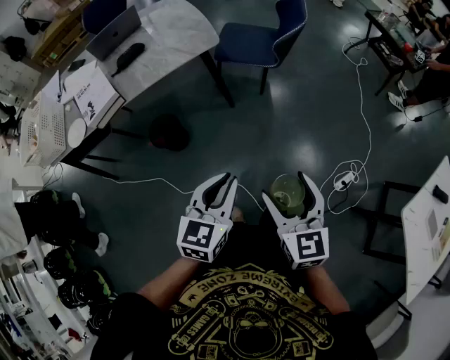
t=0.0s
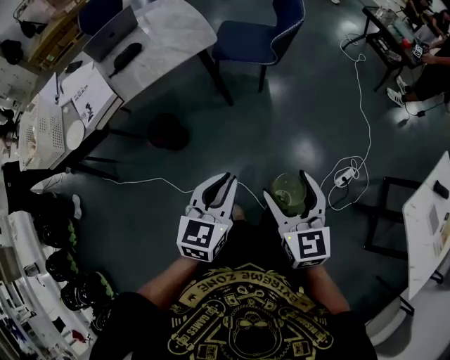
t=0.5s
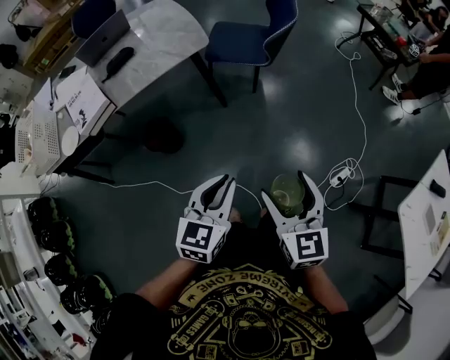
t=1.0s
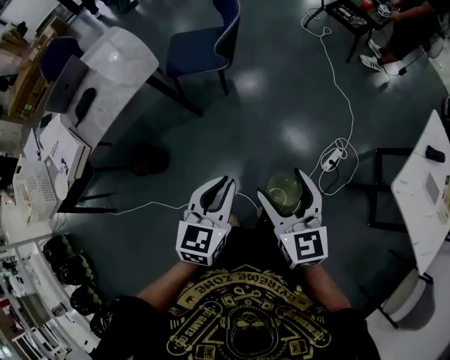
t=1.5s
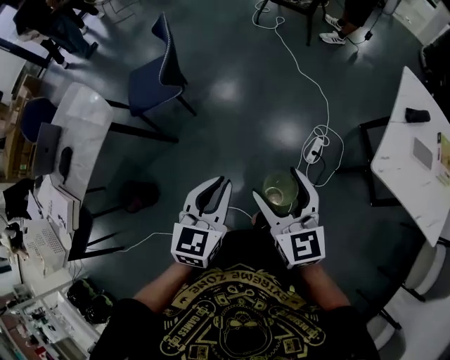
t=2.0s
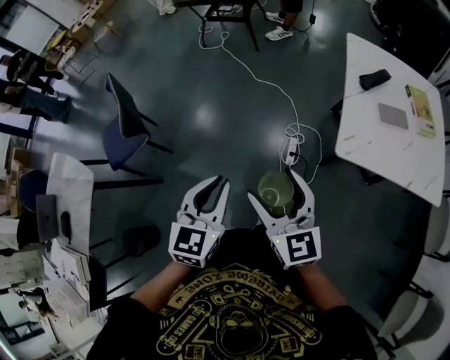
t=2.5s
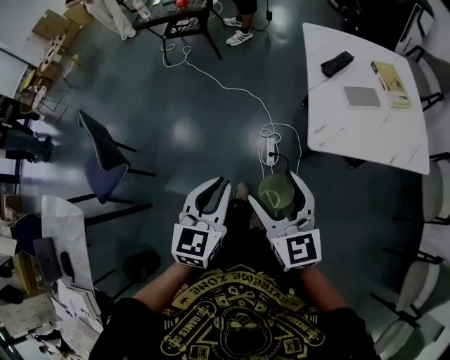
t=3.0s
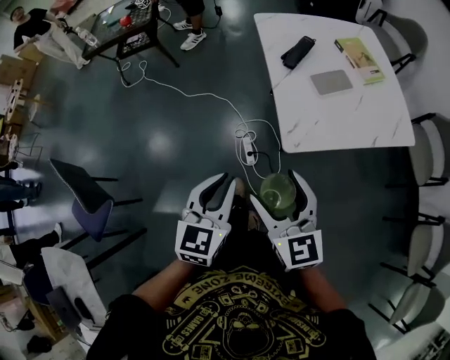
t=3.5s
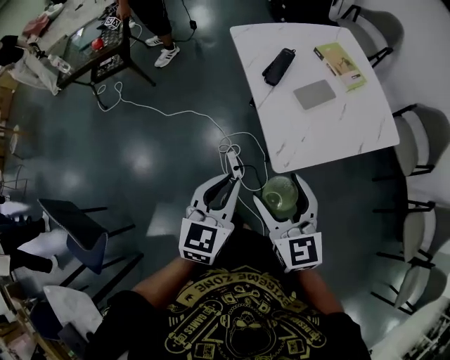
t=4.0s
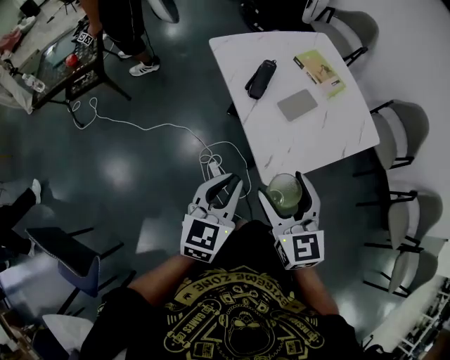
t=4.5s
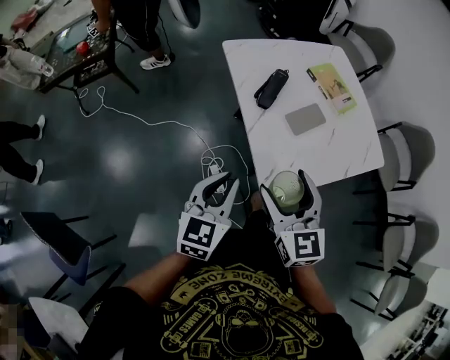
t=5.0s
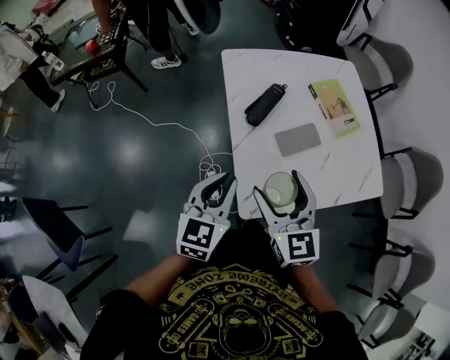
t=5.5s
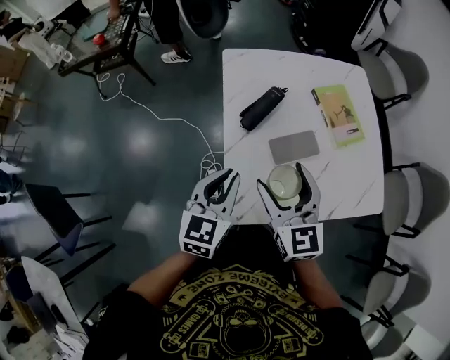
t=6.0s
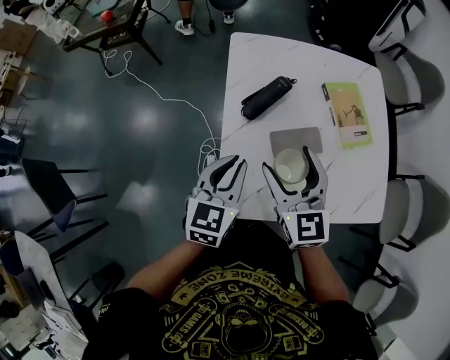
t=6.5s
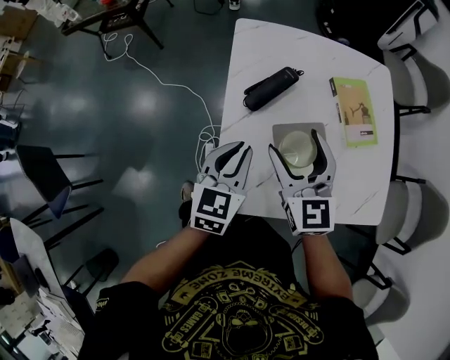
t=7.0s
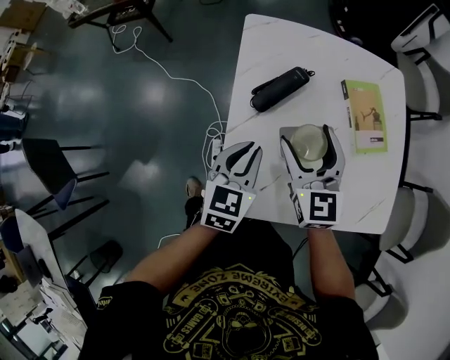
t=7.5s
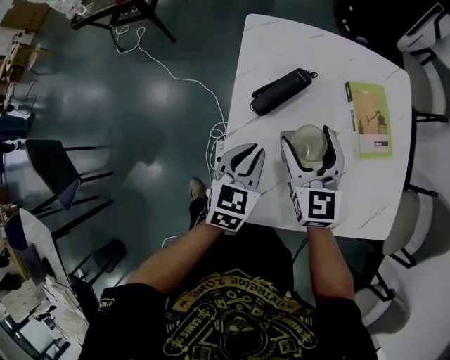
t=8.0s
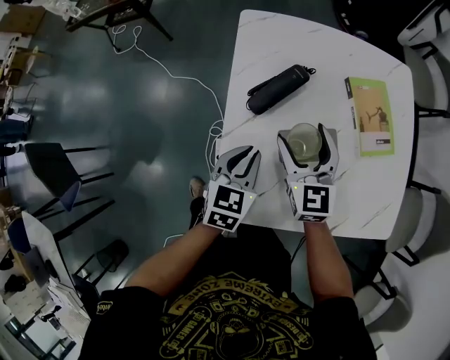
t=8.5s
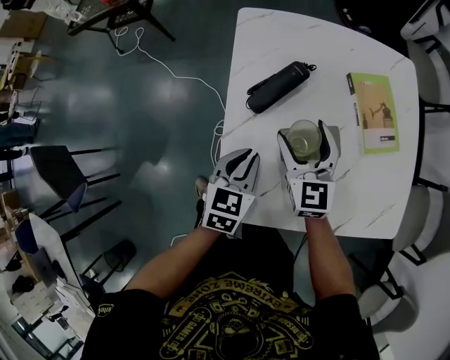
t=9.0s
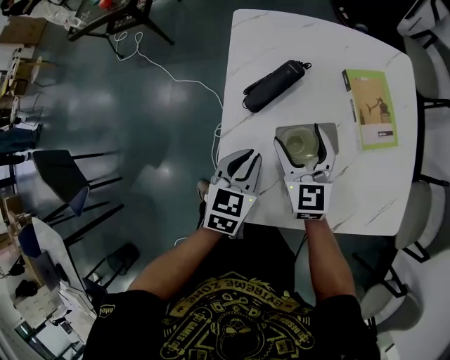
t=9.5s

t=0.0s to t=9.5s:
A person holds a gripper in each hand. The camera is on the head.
t=0.0s to t=2.0s: The right gripper ends up roughly 30 cm from where it was, and changes its angle by some 30 degrees. Meanwhile the left gripper ends up about 30 cm from where it was, and rotates about 30 degrees.
t=2.0s to t=4.0s: The left gripper ends up roughly 40 cm from where it was, and changes its angle by some 50 degrees; the right gripper changes place by approximately 35 cm, and swivels some 50 degrees.
t=4.0s to t=5.5s: The left gripper shifts approximately 20 cm forward and to the right; the right gripper travels forward by about 20 cm.
t=5.5s to t=7.5s: The right gripper heads forward, to the right and downward, covering about 20 cm, while the left gripper is displaced to the right, downward and forward by some 15 cm.
t=7.5s to t=9.5s: The right gripper travels downward by approximately 10 cm, while the left gripper travels downward by some 5 cm.

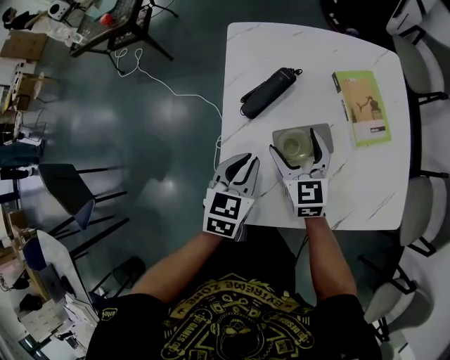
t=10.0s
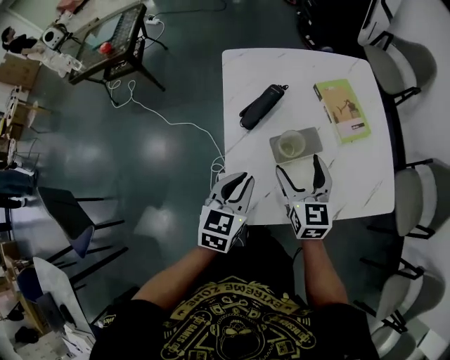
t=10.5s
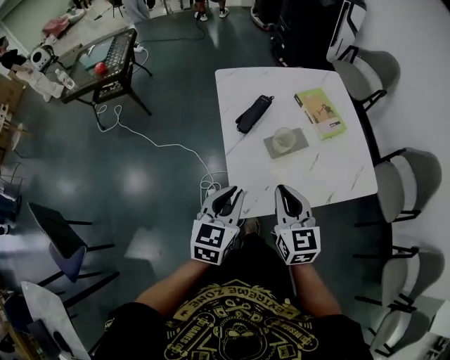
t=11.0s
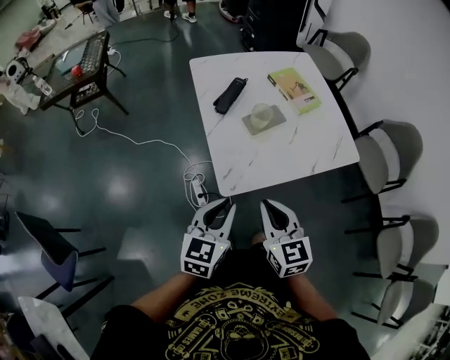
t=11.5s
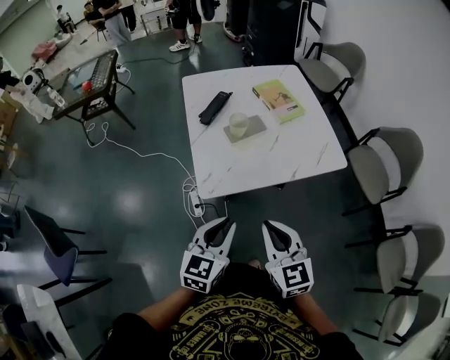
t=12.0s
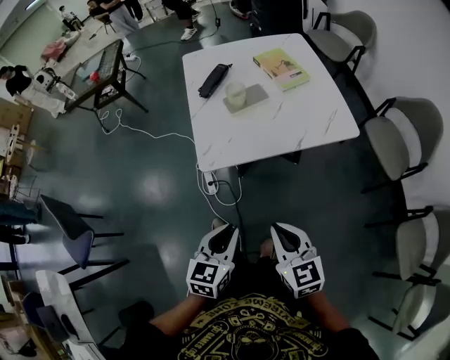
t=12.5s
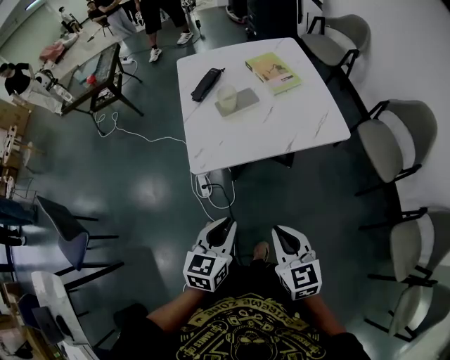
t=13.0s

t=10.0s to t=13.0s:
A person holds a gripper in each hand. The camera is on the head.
t=10.0s to t=11.5s: The two grippers go some 30 cm backward. The left gripper swivels about 20 degrees, while the right gripper closes.
t=11.5s to t=13.0s: The grippers both shift to the right and backward by about 25 cm.

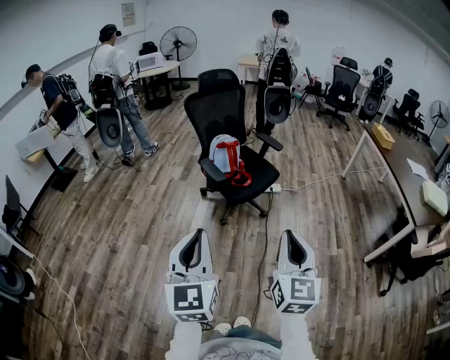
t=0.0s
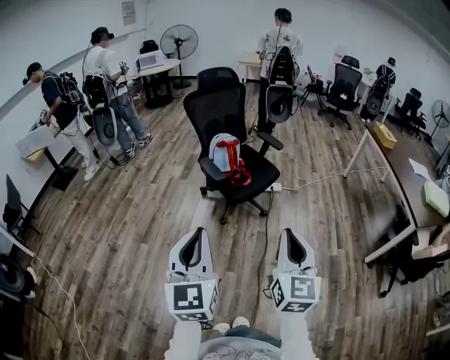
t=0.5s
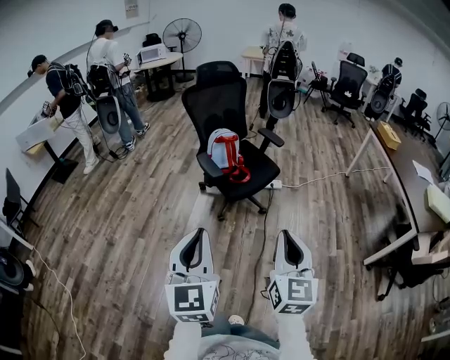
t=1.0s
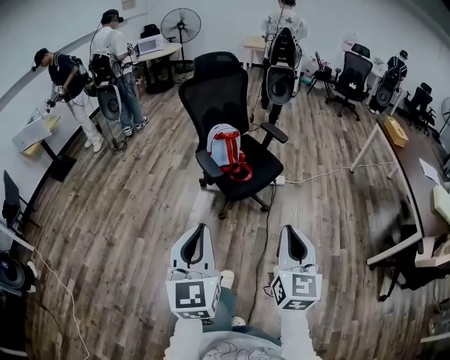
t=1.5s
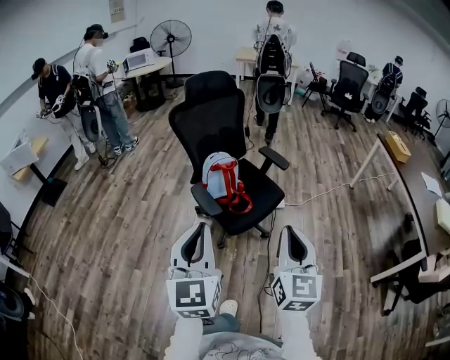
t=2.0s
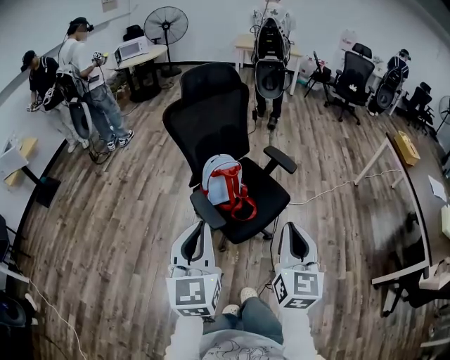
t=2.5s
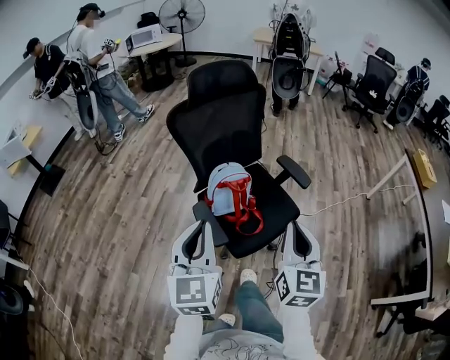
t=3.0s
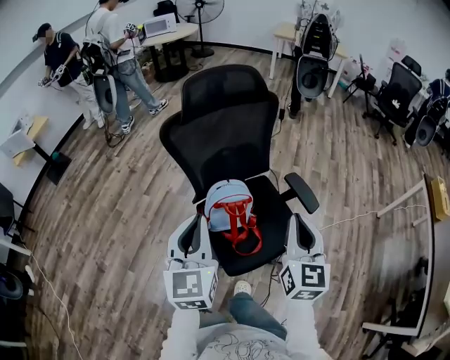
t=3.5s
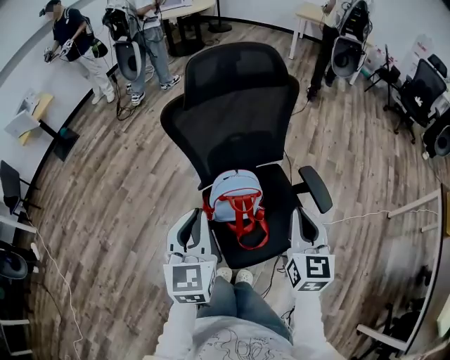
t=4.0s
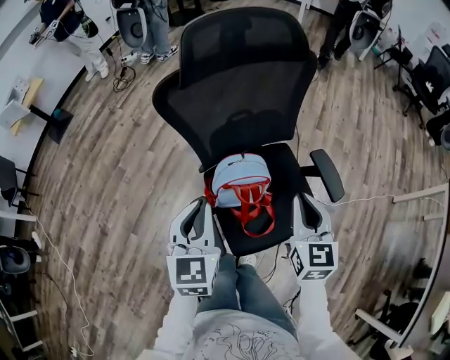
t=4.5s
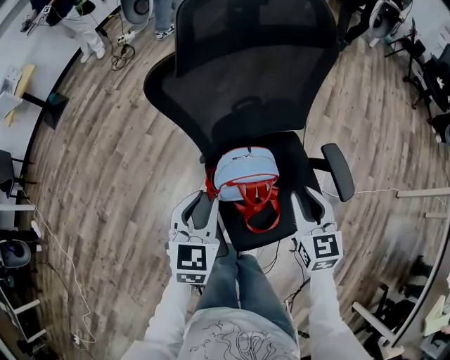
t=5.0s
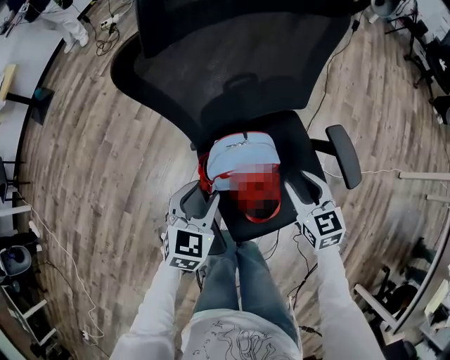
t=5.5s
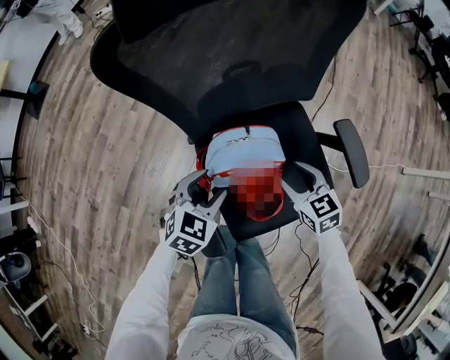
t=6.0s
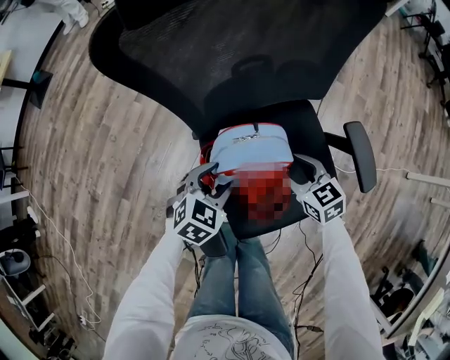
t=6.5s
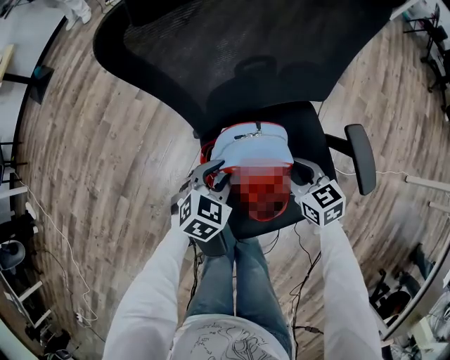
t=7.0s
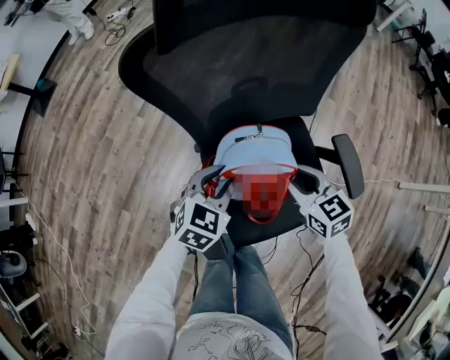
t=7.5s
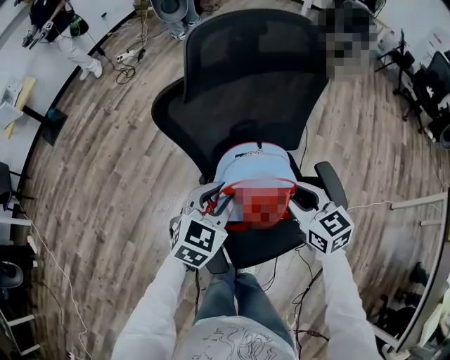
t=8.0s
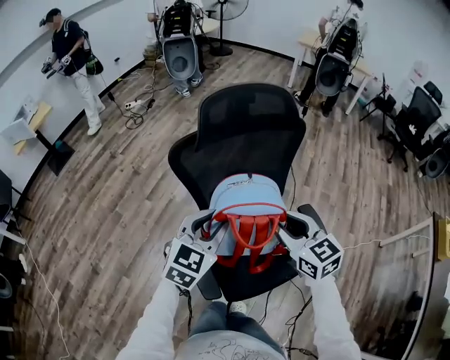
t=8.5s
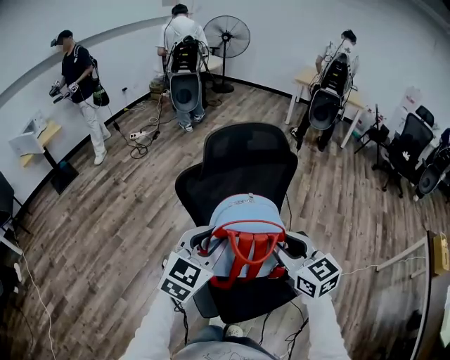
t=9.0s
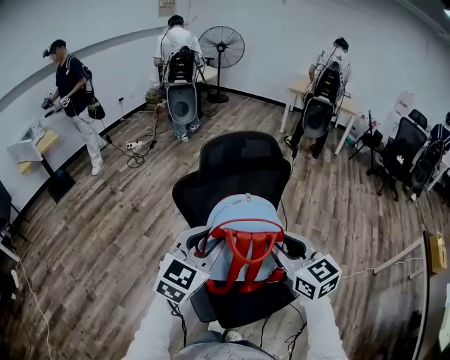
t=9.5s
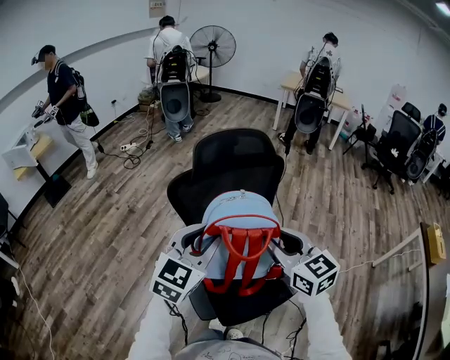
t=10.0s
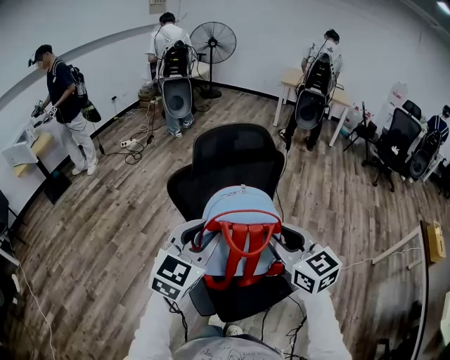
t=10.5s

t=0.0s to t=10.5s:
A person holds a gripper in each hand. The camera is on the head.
t=0.0s to t=2.0s: Both grippers travel together forward, roughly 30 cm.
t=2.0s to t=4.0s: The two grippers travel together, forward, about 50 cm. The right gripper swivels some 20 degrees, while the left gripper swivels approximately 20 degrees.
t=4.0s to t=6.5s: Both grippers move downward, some 35 cm. The right gripper rotates approximately 50 degrees, and opens up; the left gripper points its fingers roughly 40 degrees further downward, and opens up.
t=6.5s to t=8.5s: Both grippers travel together upward, roughly 35 cm. The right gripper changes its angle by approximately 20 degrees. Meanwhile the left gripper turns by some 30 degrees, and closes its fingers.
t=8.5s to t=10.5s: Both grippers travel together upward, some 10 cm.

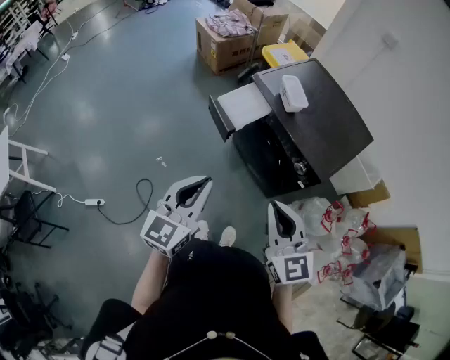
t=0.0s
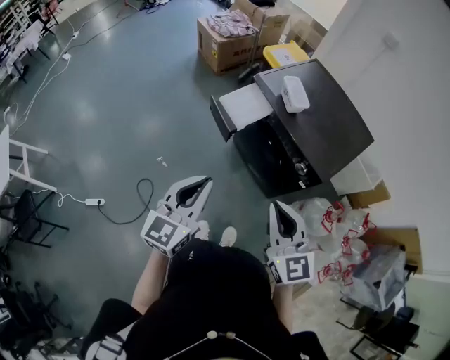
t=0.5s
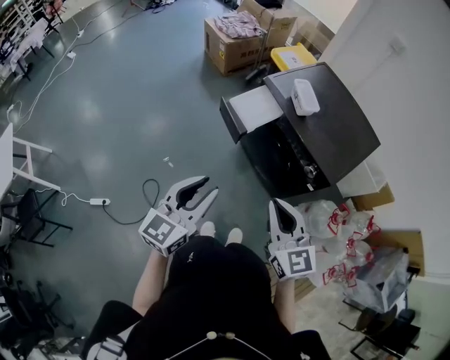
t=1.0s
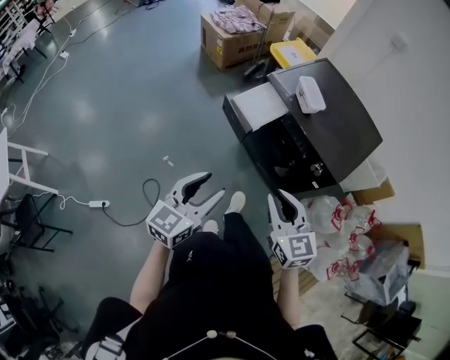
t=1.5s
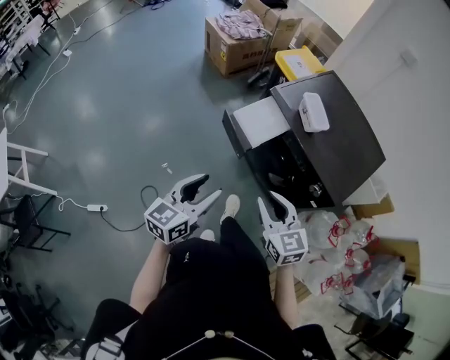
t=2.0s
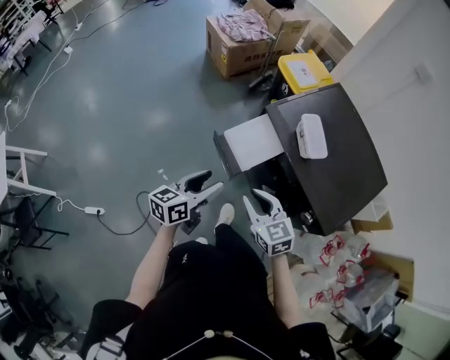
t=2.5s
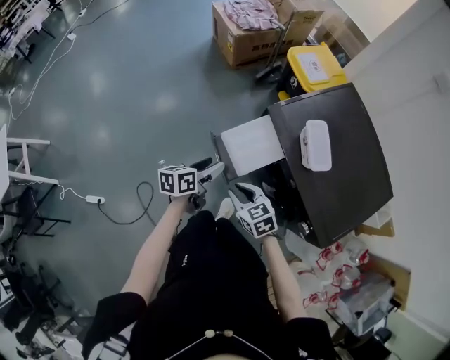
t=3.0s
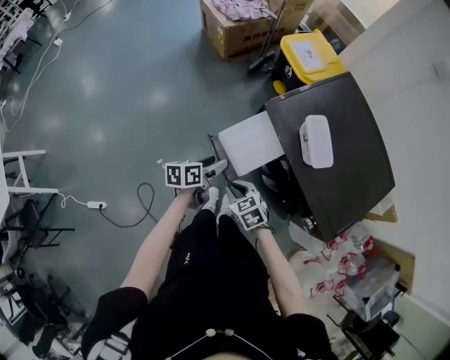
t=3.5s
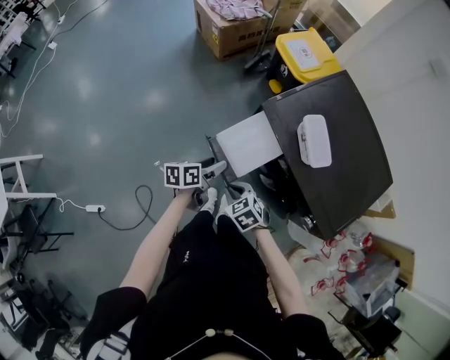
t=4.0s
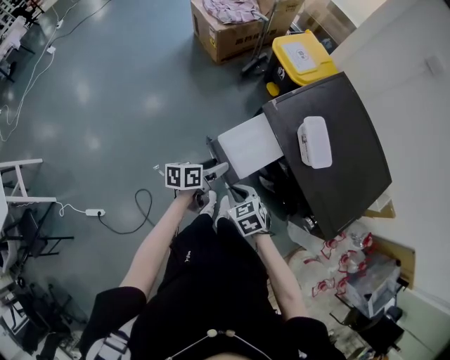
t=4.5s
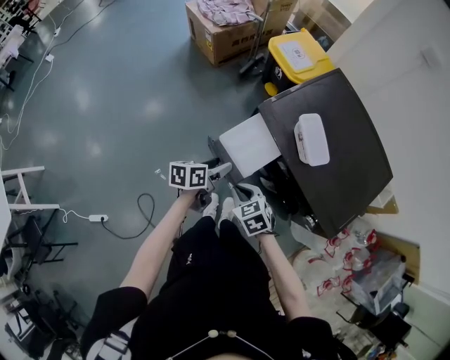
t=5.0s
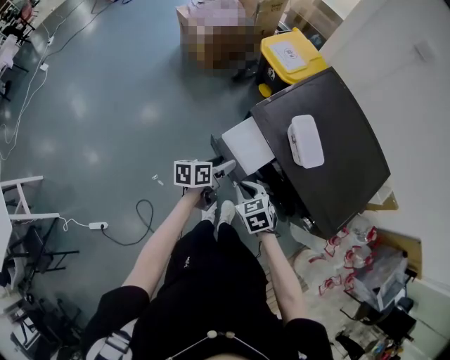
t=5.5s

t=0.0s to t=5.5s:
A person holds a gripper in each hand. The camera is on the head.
t=0.0s to t=2.0s: The grippers both shift downward, forward and to the left by approximately 15 cm. The left gripper opens. Meanwhile the right gripper opens its fingers.
t=2.0s to t=3.5s: The right gripper is displaced downward and forward by about 25 cm, and swivels roughly 30 degrees. Meanwhile the left gripper travels forward and downward by roughly 30 cm, and turns by approximately 40 degrees.
t=3.5s to t=5.5s: Both grippers travel together to the right, roughly 5 cm.
